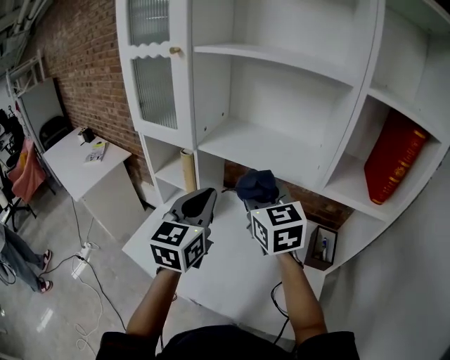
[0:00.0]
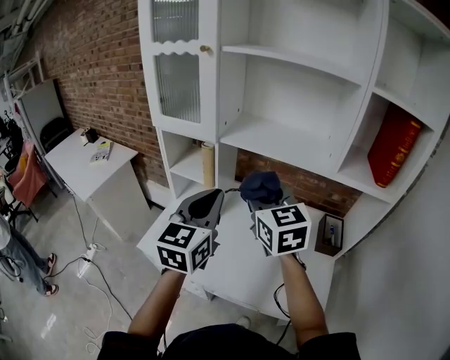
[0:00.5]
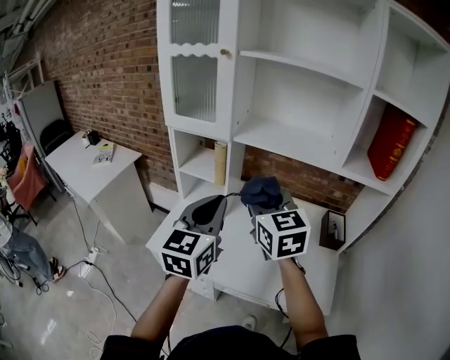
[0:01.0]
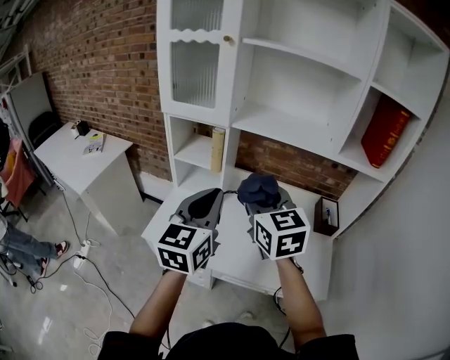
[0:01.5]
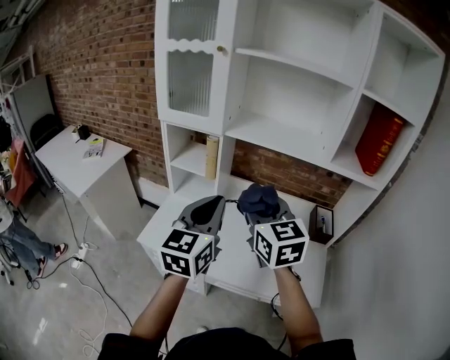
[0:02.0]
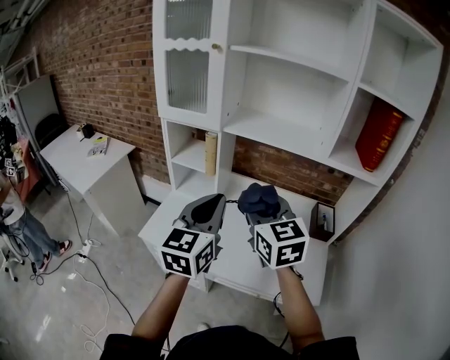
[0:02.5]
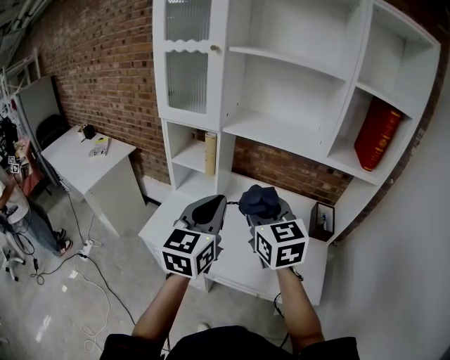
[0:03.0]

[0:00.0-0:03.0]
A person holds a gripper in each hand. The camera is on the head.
0:00.0 to 0:01.5: The two grippers go roughly 20 cm backward and to the left.
0:01.5 to 0:03.0: Both grippers move to the right, roughly 5 cm.

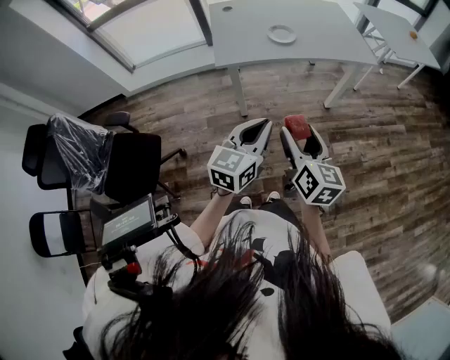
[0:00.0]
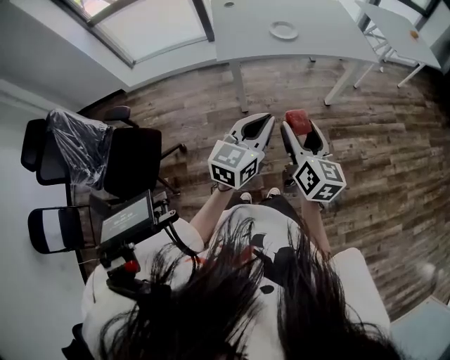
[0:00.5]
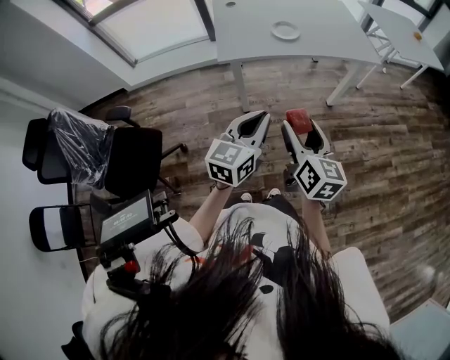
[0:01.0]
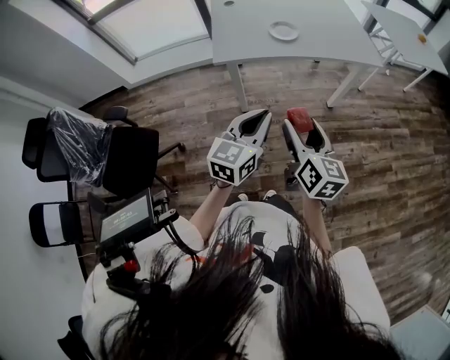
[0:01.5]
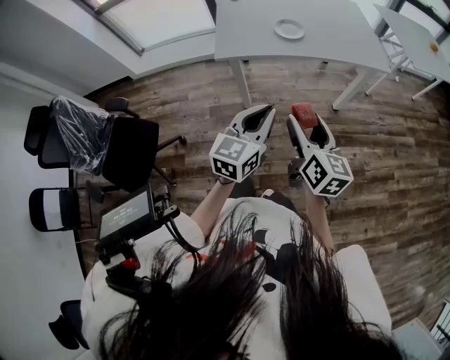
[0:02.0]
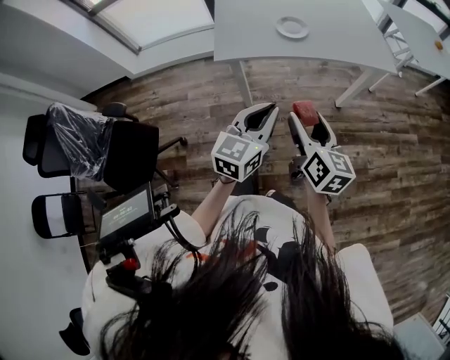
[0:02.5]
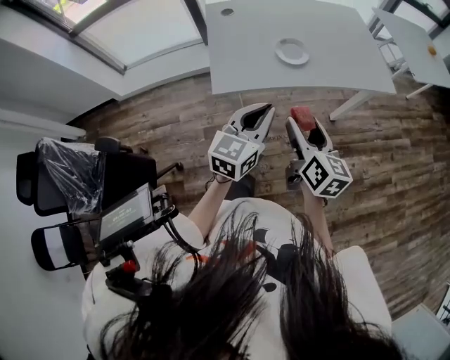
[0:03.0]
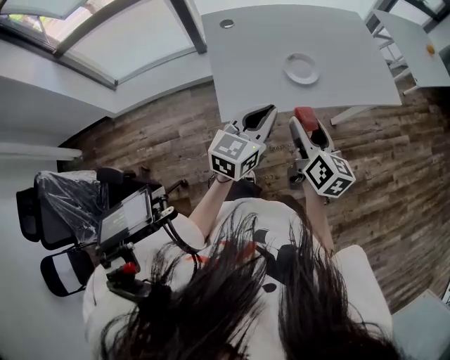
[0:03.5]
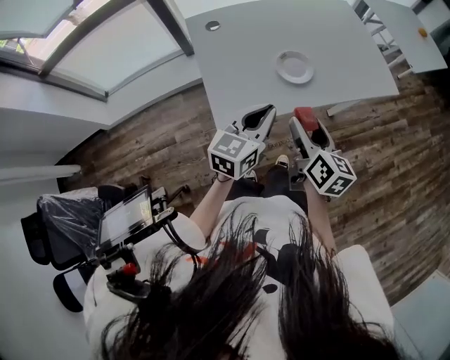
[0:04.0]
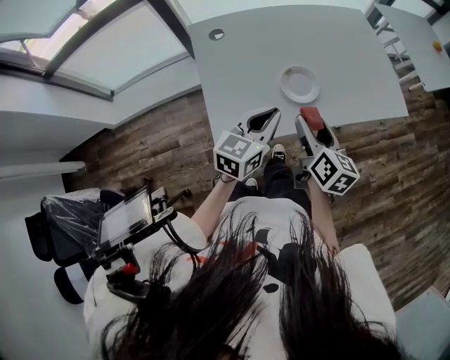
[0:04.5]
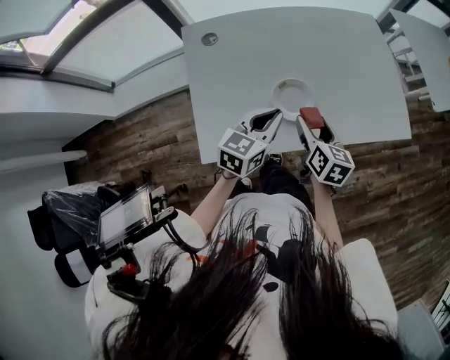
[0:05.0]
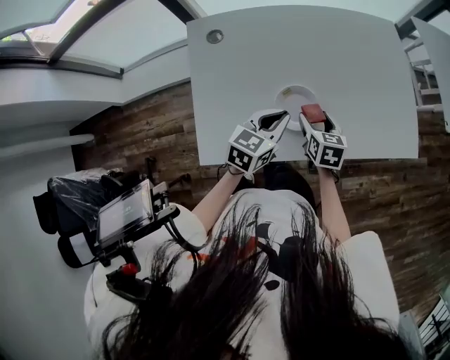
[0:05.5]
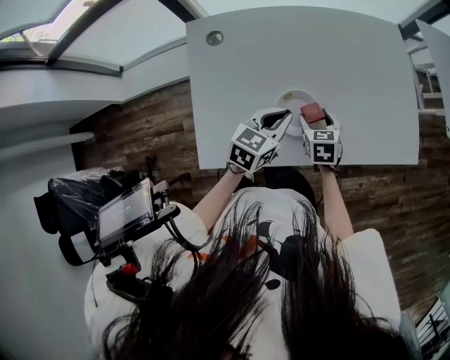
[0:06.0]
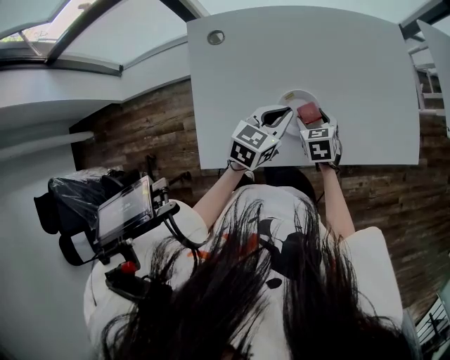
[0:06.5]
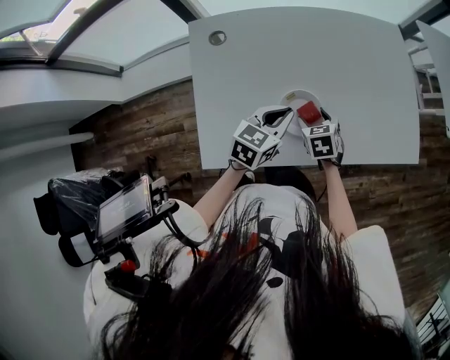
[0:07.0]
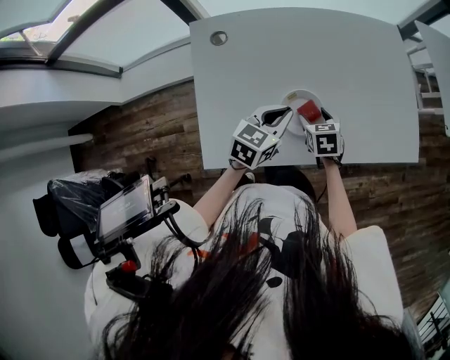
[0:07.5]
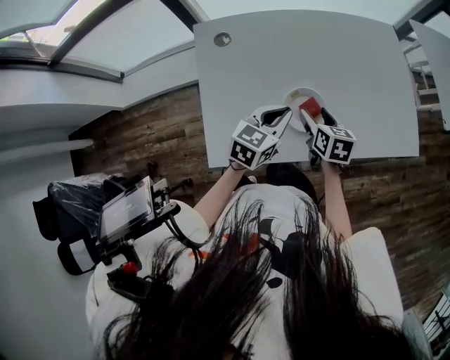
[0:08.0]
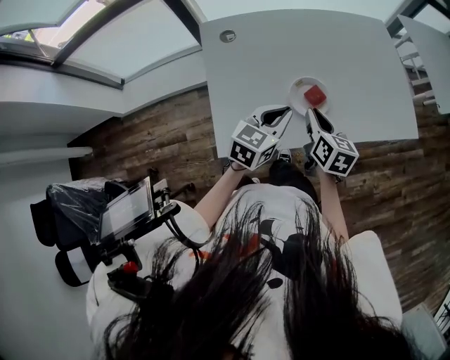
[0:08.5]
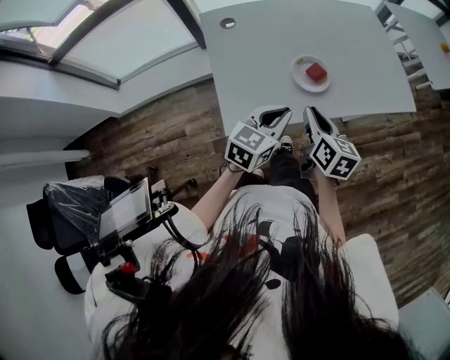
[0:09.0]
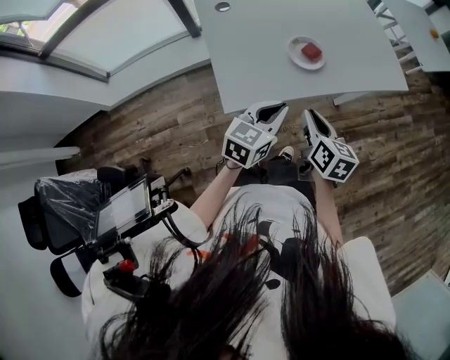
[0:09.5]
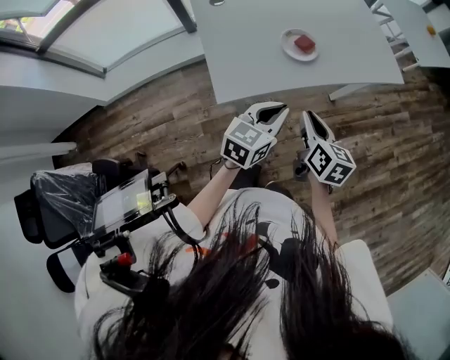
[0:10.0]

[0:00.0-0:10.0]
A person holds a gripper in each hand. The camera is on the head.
0:00.0 to 0:02.0: The two grippers go roughly 5 cm forward.
0:02.0 to 0:04.0: The two grippers go roughly 30 cm forward and to the left.
0:04.0 to 0:06.0: The grippers both shift forward and downward by some 25 cm. The right gripper tilts its fingers approximately 30 degrees downward.
0:06.0 to 0:08.0: The right gripper shifts approximately 5 cm upward, and changes its angle by roughly 20 degrees.
0:08.0 to 0:10.0: Both grippers travel together backward, roughly 25 cm. The right gripper rotates about 20 degrees, and closes up.

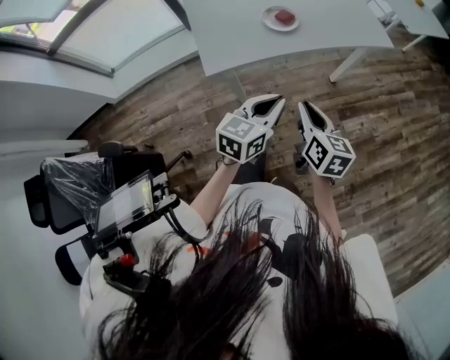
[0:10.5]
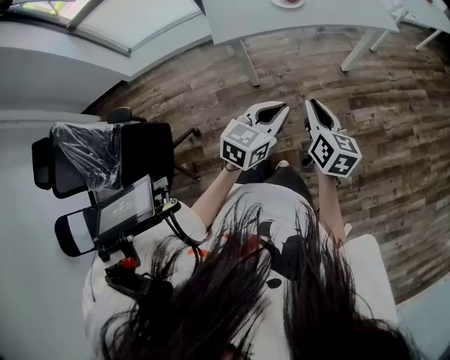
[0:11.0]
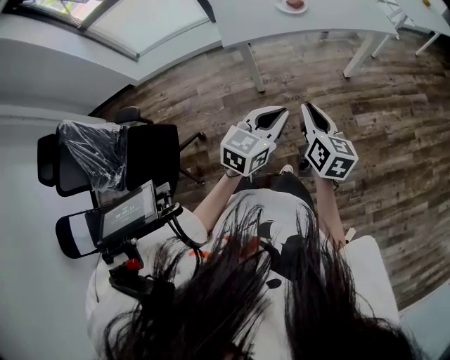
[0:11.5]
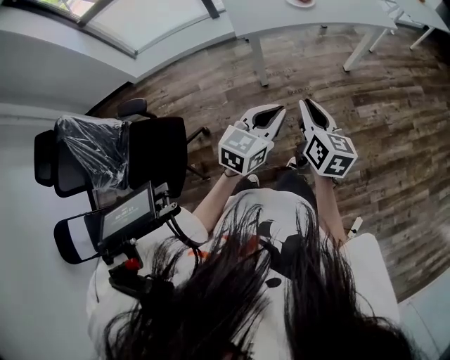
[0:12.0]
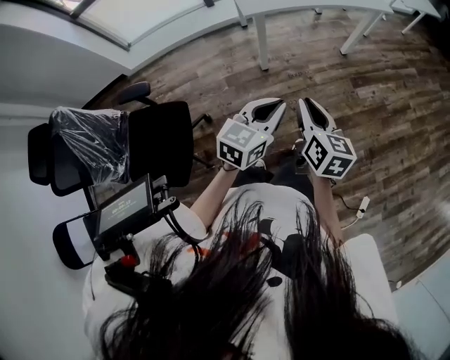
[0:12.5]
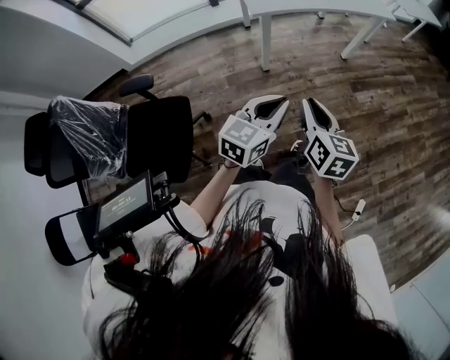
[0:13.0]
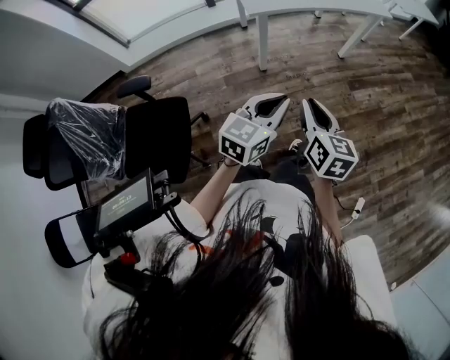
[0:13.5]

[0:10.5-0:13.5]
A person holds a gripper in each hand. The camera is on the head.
0:10.5 to 0:12.0: Both grippers travel together backward, roughly 25 cm.
0:12.0 to 0:13.5: The two grippers go about 10 cm backward.

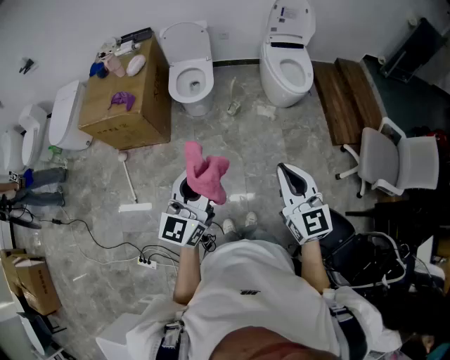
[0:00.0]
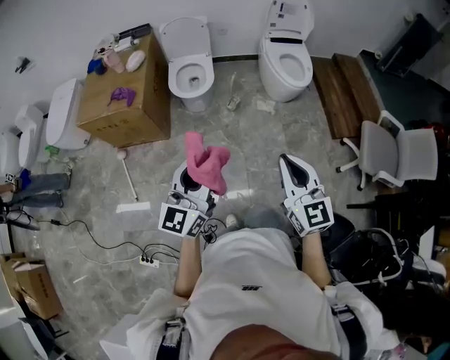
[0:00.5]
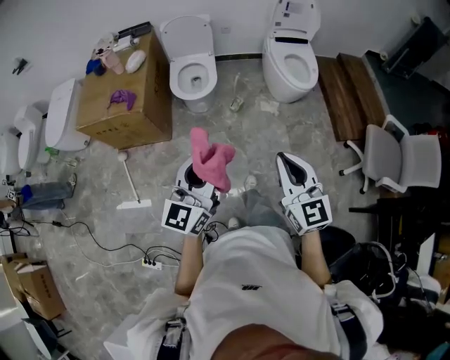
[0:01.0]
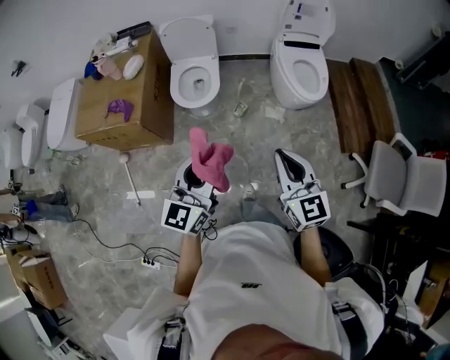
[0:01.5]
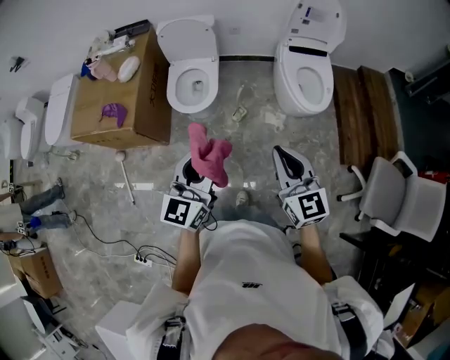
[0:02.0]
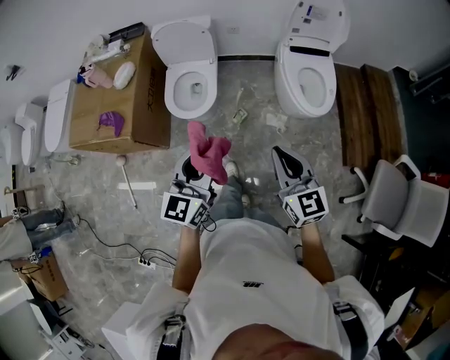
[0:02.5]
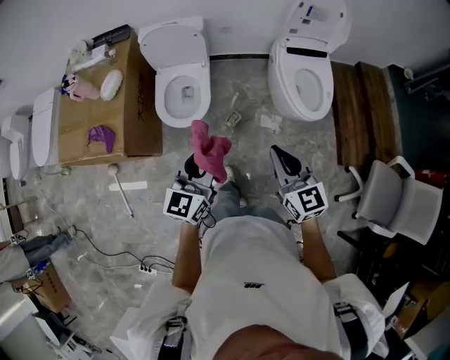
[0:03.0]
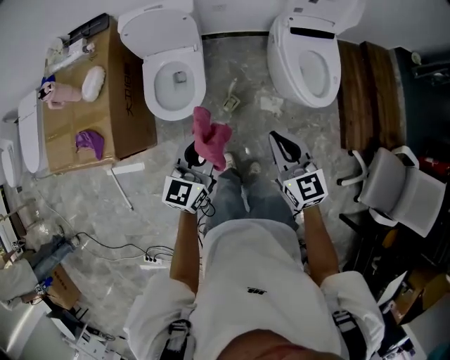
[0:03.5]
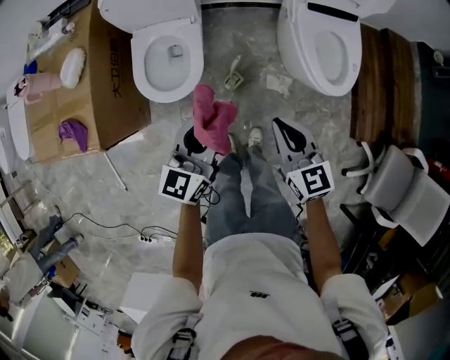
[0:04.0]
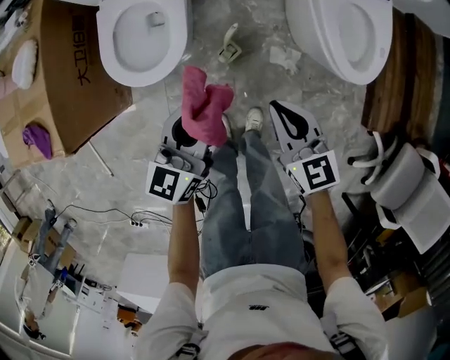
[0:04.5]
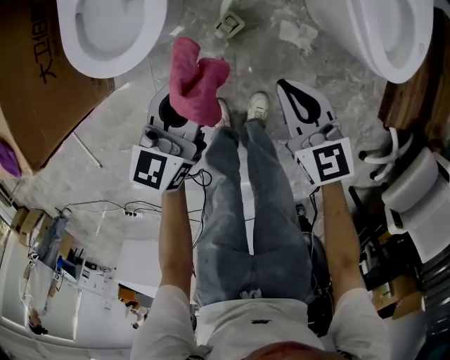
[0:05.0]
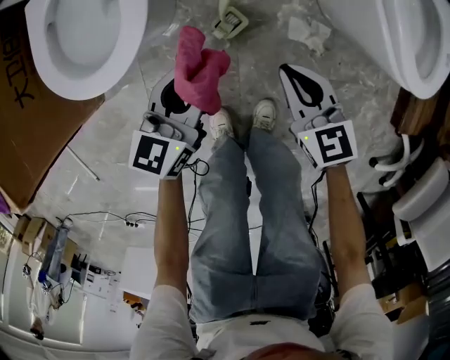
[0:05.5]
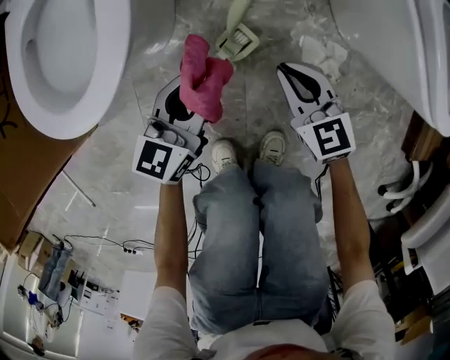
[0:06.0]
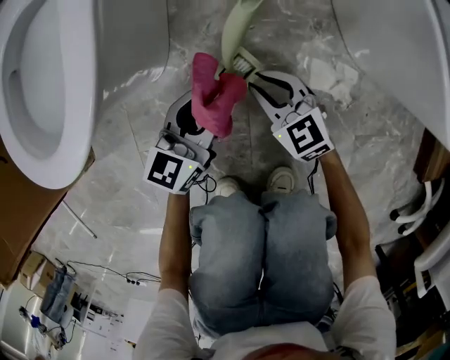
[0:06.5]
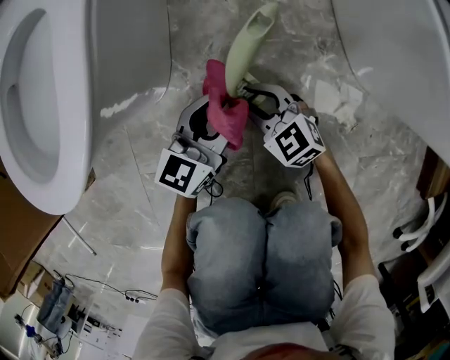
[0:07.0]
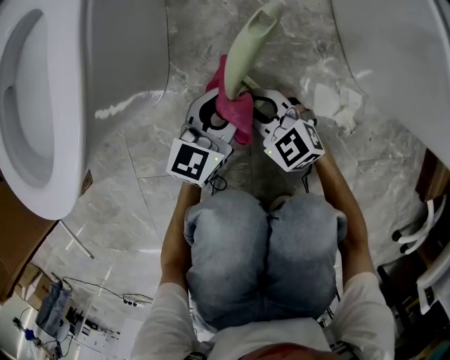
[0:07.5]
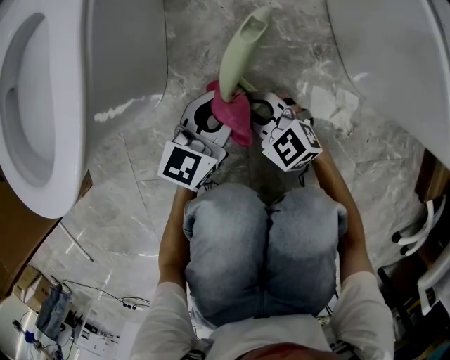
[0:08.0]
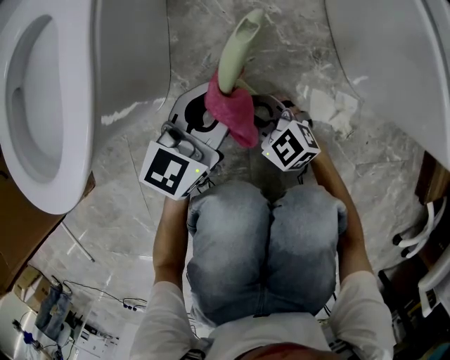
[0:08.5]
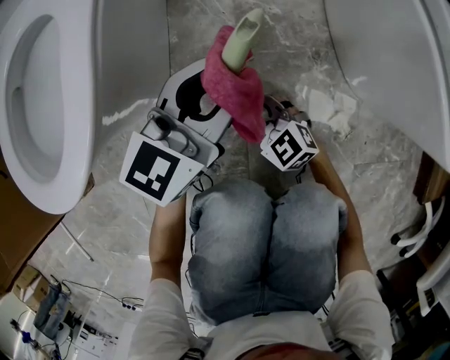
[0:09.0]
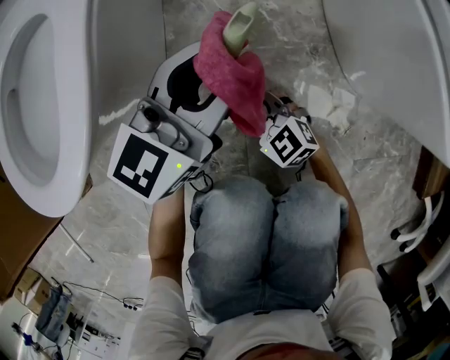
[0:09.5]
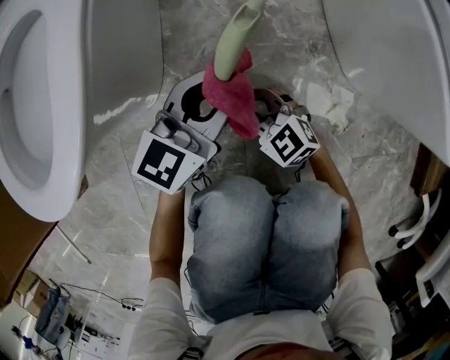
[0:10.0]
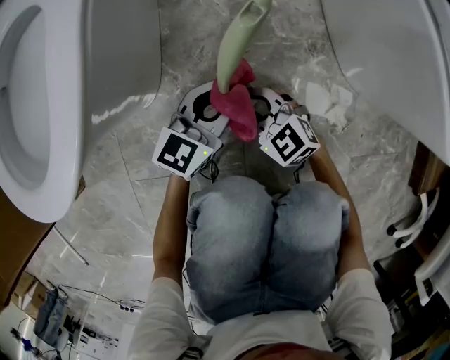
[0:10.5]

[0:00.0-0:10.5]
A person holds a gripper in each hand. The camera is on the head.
0:00.0 to 0:02.0: Both grippers travel together forward, roughly 35 cm.
0:02.0 to 0:04.0: Both grippers move forward and downward, approximately 40 cm.
0:04.0 to 0:06.5: The grippers both shift downward by approximately 70 cm. The right gripper changes its angle by some 30 degrees.
0:06.5 to 0:08.5: The left gripper heads forward, covering some 5 cm, and goes downward and returns, roughly 5 cm each way; the right gripper moves downward, roughly 5 cm.
0:08.5 to 0:10.5: The left gripper moves downward, roughly 5 cm.
